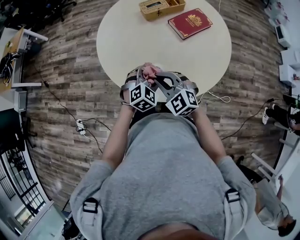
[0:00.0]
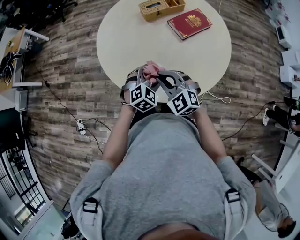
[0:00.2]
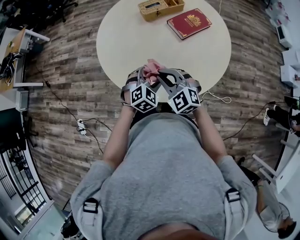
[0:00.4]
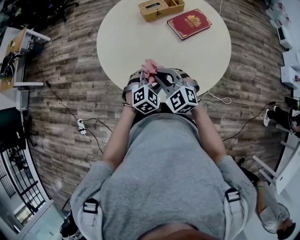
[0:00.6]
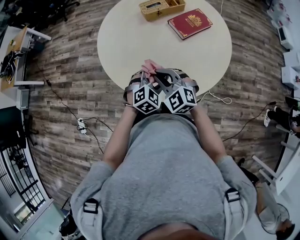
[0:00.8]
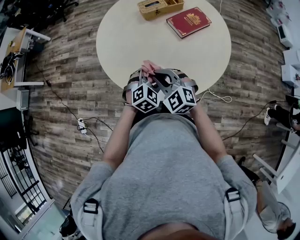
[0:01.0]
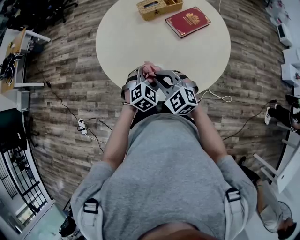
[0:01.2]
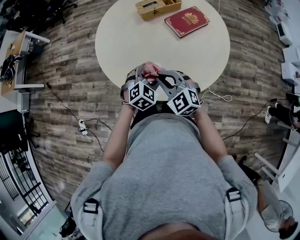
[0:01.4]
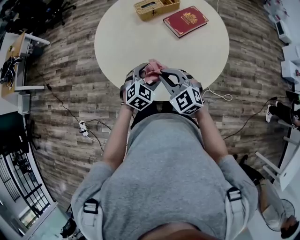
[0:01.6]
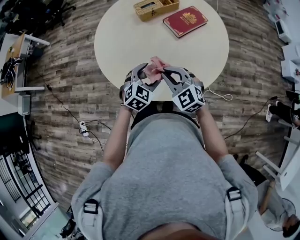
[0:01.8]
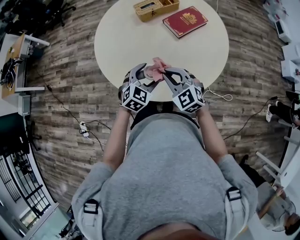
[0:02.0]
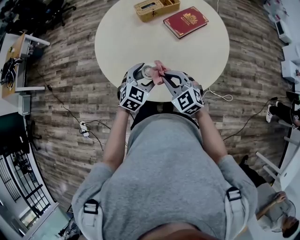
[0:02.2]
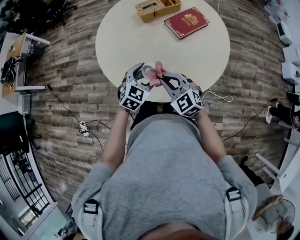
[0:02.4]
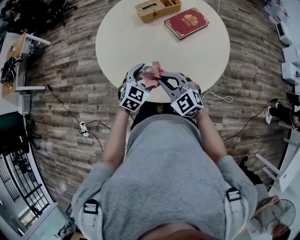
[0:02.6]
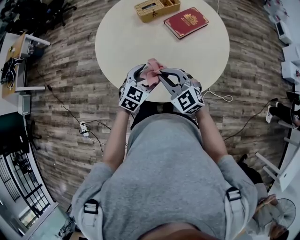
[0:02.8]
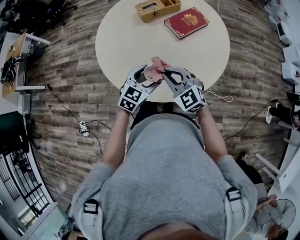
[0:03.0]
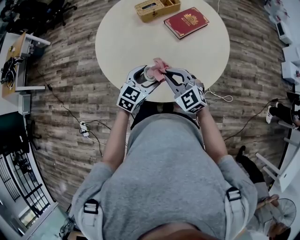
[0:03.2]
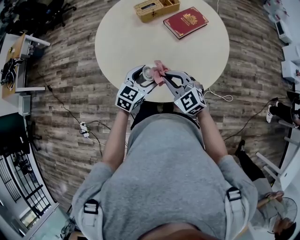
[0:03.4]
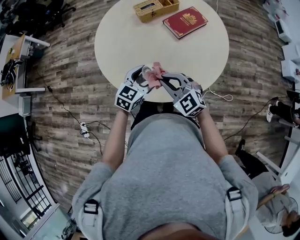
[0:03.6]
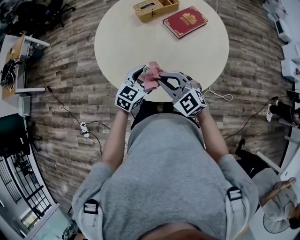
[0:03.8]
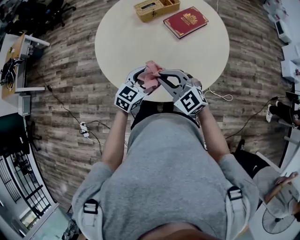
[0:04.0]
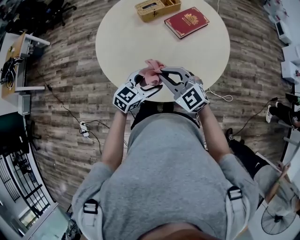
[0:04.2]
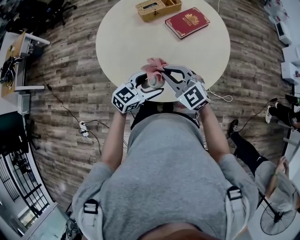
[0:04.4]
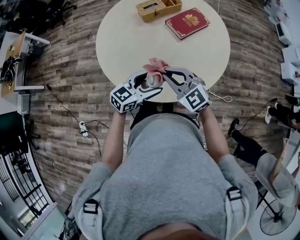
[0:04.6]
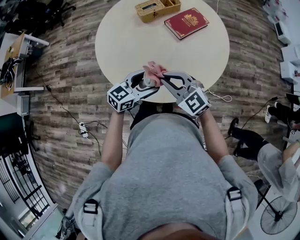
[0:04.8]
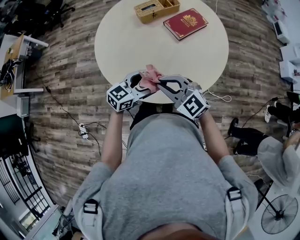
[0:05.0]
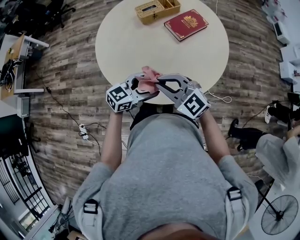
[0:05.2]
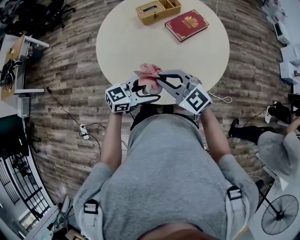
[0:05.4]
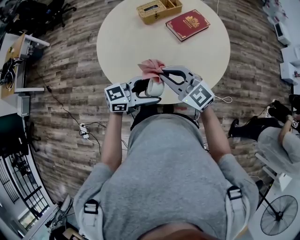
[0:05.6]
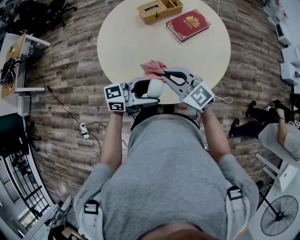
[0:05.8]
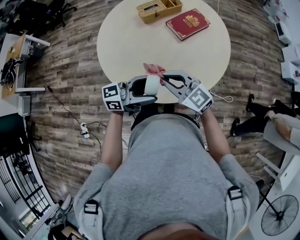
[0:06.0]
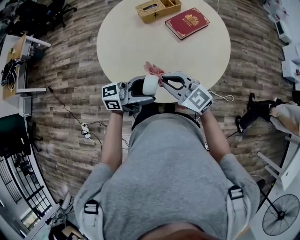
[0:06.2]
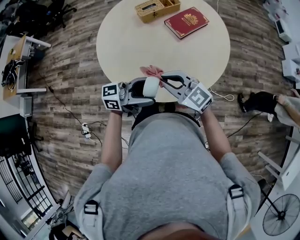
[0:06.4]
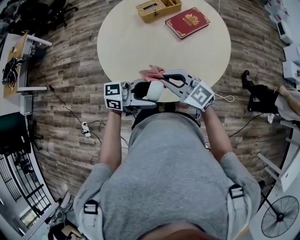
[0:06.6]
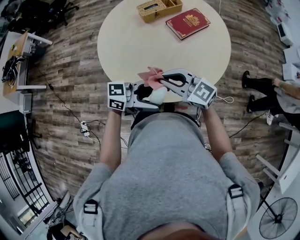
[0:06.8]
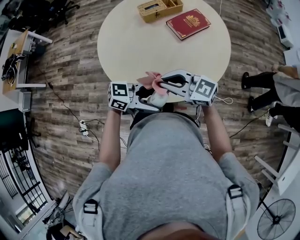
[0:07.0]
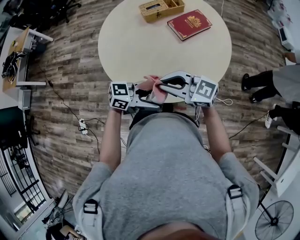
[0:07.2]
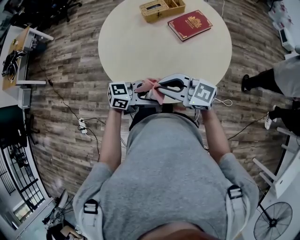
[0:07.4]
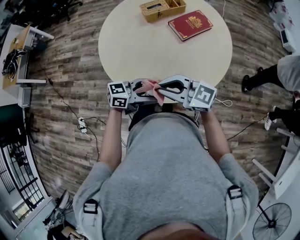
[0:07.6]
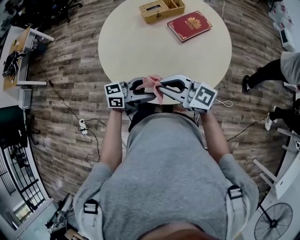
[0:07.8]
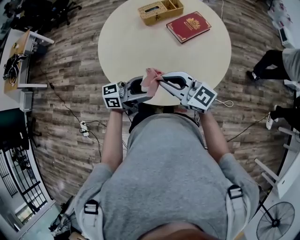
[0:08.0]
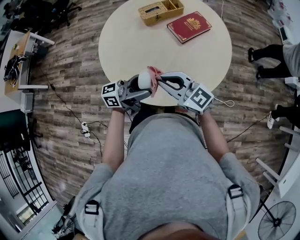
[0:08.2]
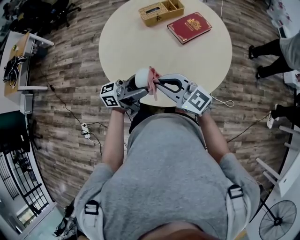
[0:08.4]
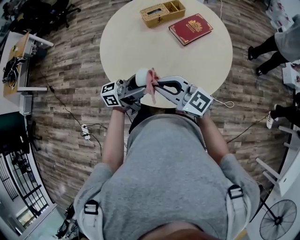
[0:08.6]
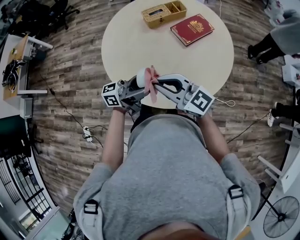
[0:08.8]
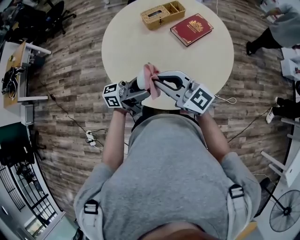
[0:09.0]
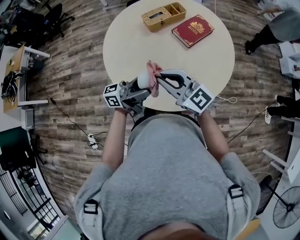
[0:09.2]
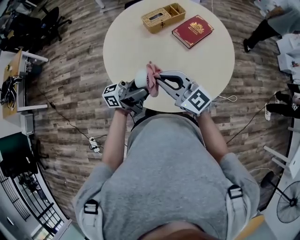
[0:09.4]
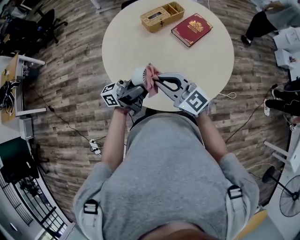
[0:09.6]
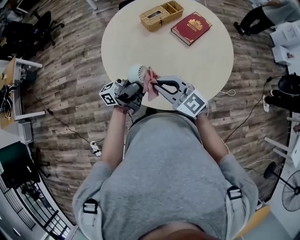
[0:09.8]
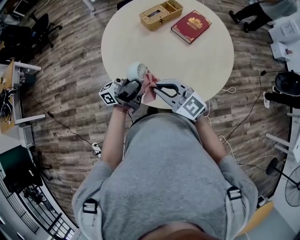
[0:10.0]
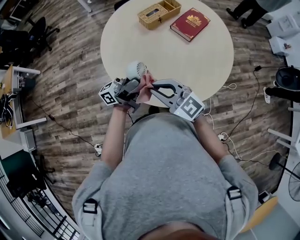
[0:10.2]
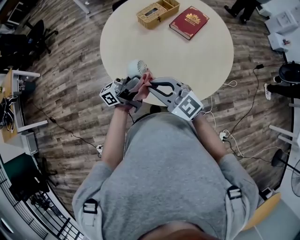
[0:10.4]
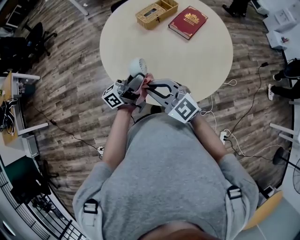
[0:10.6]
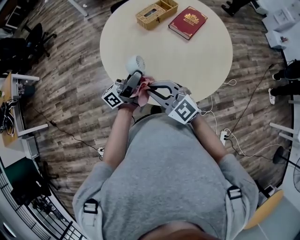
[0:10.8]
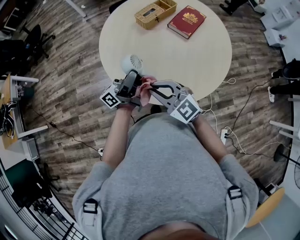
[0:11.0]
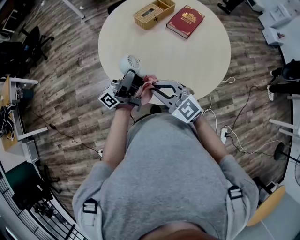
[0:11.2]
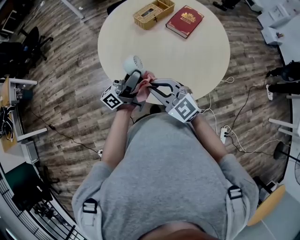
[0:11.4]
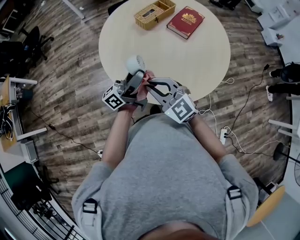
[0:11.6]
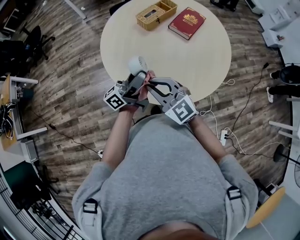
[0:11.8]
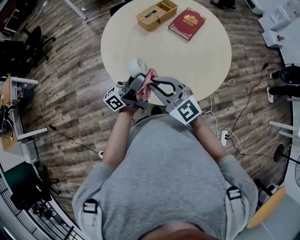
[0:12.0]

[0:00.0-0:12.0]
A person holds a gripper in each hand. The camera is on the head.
0:00.0 to 0:01.6: The right gripper is displaced to the right by roughly 5 cm.
0:01.6 to 0:03.0: The grippers move only a little.
0:03.0 to 0:04.4: The left gripper rotates roughly 20 degrees.
0:04.4 to 0:06.0: The left gripper heads upward, covering some 10 cm, and changes its angle by approximately 40 degrees.
0:06.0 to 0:07.6: The right gripper turns by about 20 degrees, while the left gripper goes roughly 5 cm downward.
0:07.6 to 0:09.0: The left gripper ends up some 15 cm from where it was, and changes its angle by approximately 30 degrees. Meanwhile the right gripper ends up about 10 cm from where it was, and turns by roughly 20 degrees.
0:09.0 to 0:10.4: The left gripper changes place by roughly 15 cm; the right gripper changes place by roughly 15 cm.
0:10.4 to 0:12.0: The grippers make only small movements.

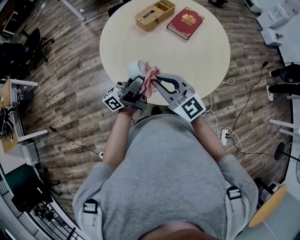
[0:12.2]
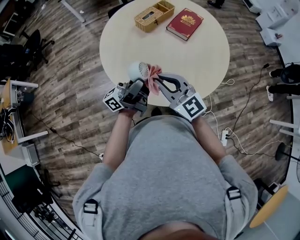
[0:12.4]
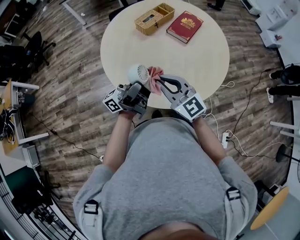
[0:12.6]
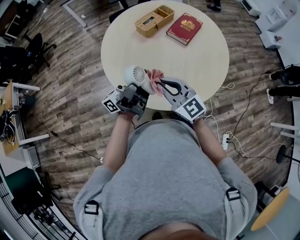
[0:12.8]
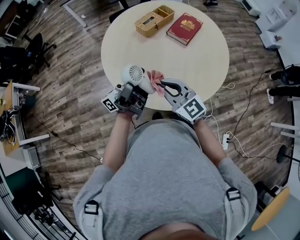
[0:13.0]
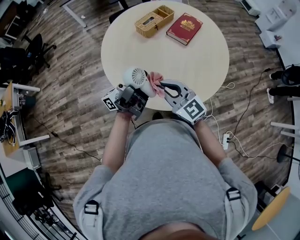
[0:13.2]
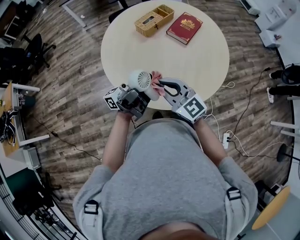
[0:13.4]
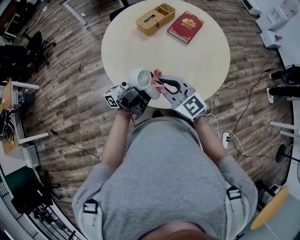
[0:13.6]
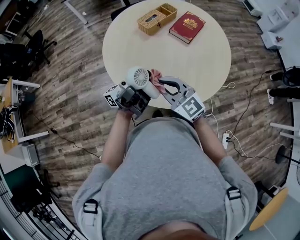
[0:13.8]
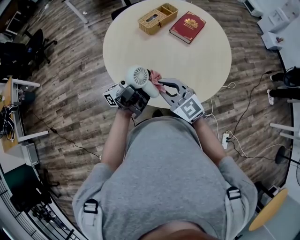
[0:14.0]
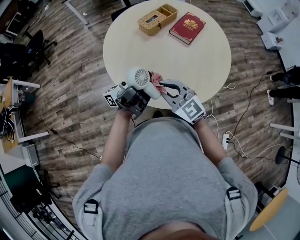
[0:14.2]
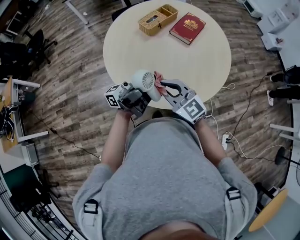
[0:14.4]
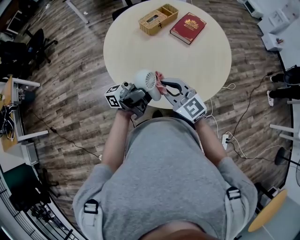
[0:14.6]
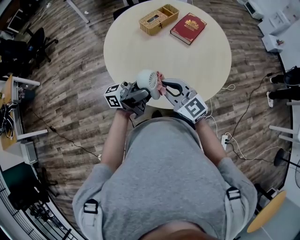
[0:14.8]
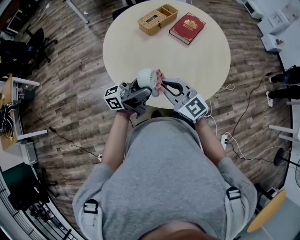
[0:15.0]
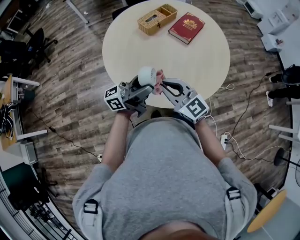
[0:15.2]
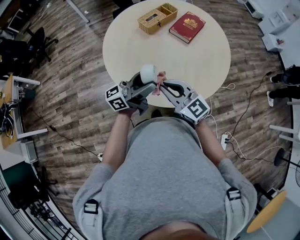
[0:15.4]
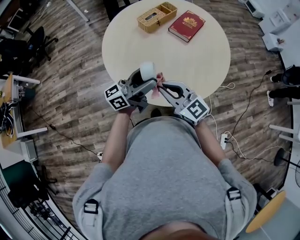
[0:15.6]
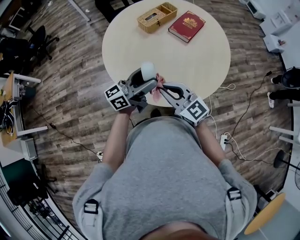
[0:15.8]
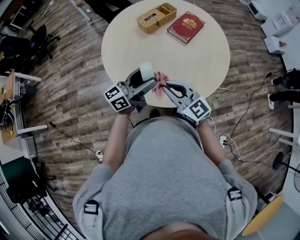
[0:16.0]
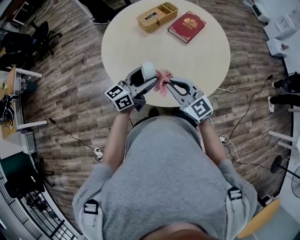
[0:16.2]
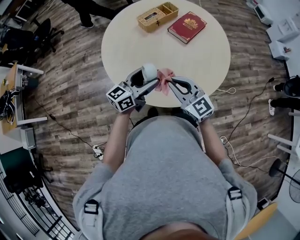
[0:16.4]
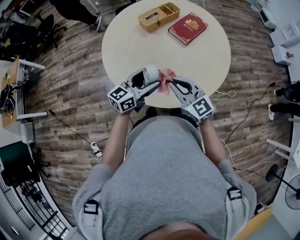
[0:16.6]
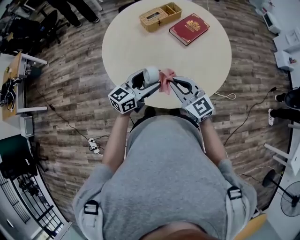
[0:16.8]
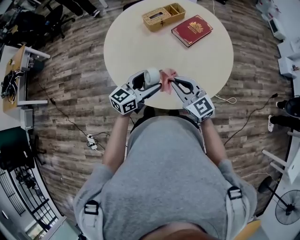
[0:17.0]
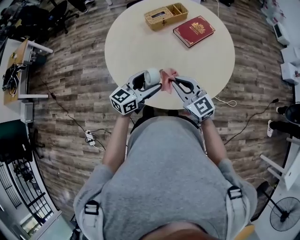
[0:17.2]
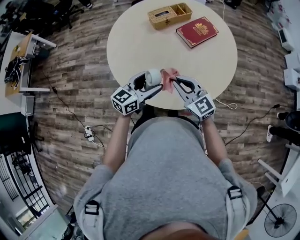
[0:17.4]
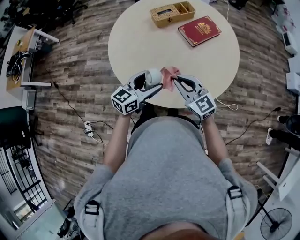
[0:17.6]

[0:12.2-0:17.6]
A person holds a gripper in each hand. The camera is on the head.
0:12.2 to 0:13.6: The left gripper swivels some 30 degrees.
0:13.6 to 0:15.0: The left gripper swivels some 20 degrees.
0:15.0 to 0:16.2: The right gripper moves to the right, roughly 10 cm, while the left gripper heads downward, covering some 5 cm, and rotates some 40 degrees.
0:16.2 to 0:17.6: Both grippers move to the right, approximately 10 cm. The left gripper rotates roughly 20 degrees.

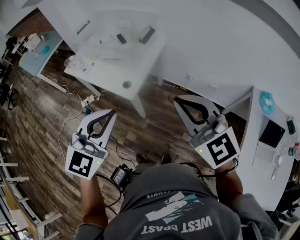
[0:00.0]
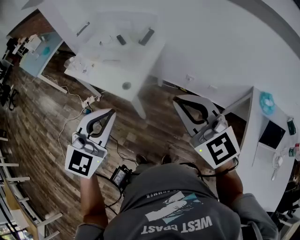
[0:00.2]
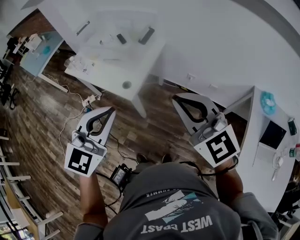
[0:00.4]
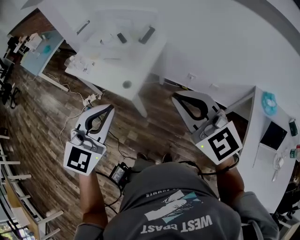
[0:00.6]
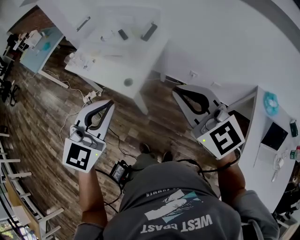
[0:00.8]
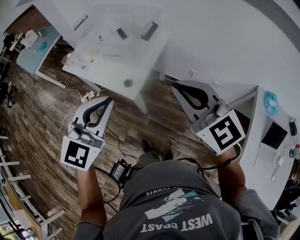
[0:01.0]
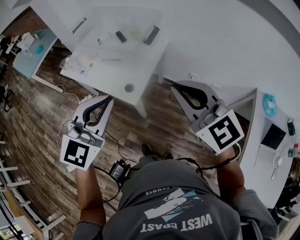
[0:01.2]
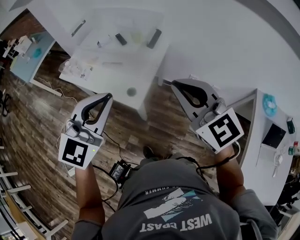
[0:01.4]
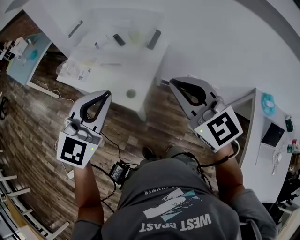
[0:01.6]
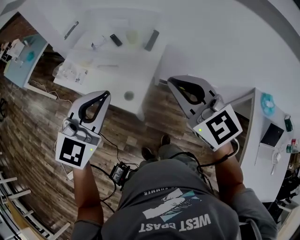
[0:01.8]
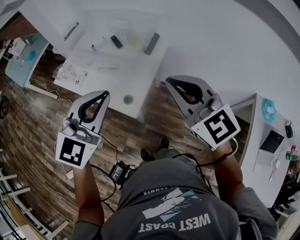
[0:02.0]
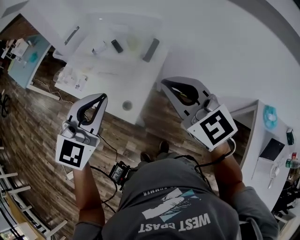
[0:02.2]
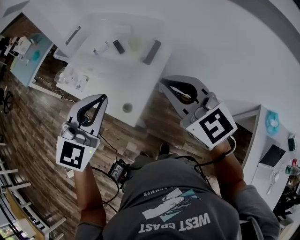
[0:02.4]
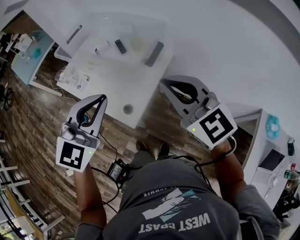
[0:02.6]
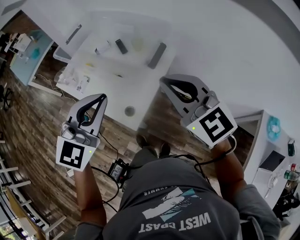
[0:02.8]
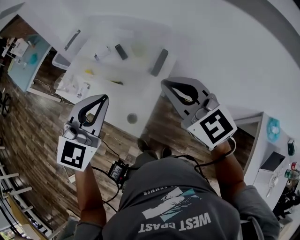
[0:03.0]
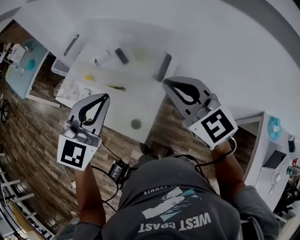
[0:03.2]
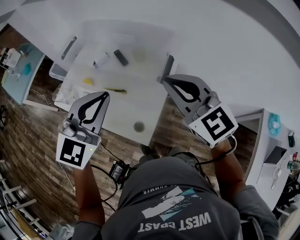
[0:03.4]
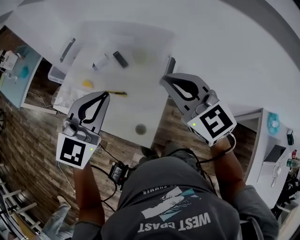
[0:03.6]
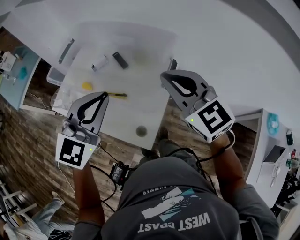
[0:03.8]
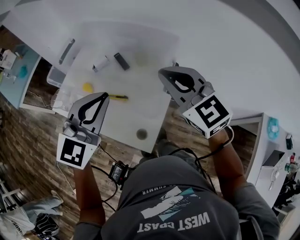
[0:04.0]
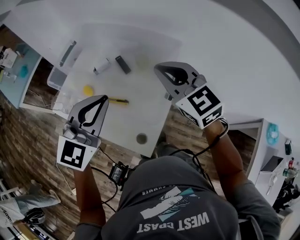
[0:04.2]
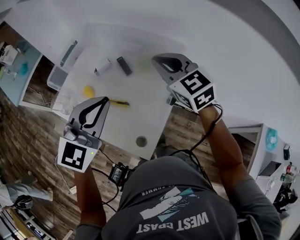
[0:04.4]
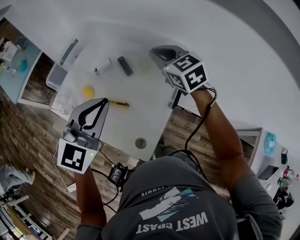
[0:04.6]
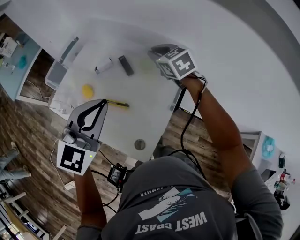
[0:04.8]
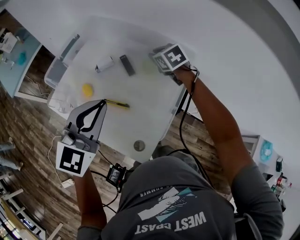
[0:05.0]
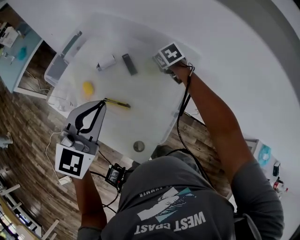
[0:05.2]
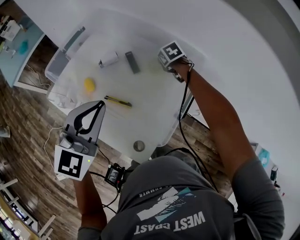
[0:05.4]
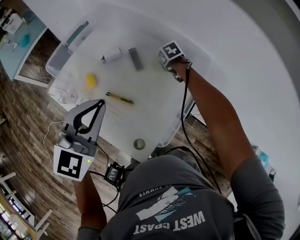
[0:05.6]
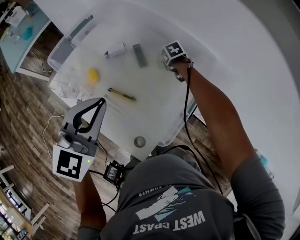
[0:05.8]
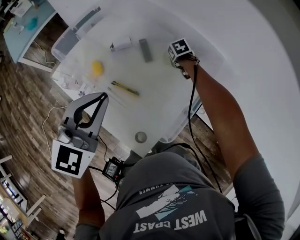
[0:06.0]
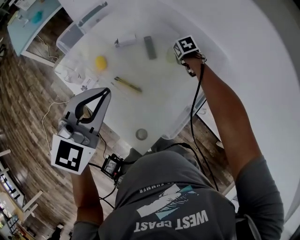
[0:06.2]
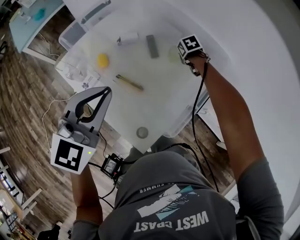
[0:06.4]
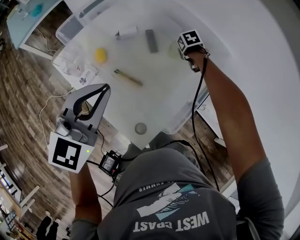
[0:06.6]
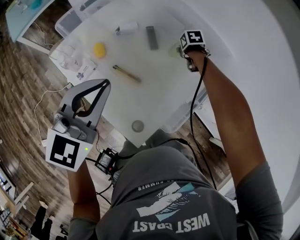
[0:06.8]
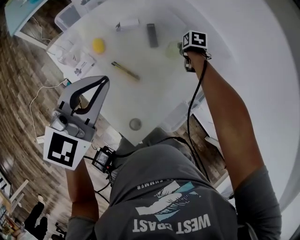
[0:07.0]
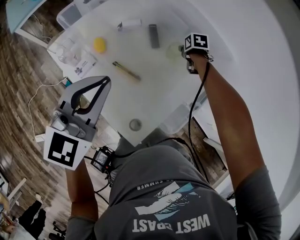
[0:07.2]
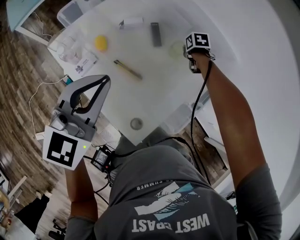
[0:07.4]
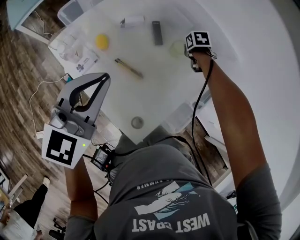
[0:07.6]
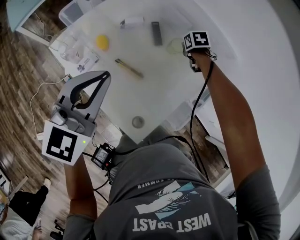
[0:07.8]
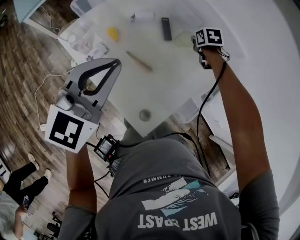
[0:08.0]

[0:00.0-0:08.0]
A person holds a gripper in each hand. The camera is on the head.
0:00.0 to 0:01.6: The grippers both shift forward and to the left by approximately 15 cm.
0:01.6 to 0:03.2: Both grippers travel together forward, roughly 20 cm.
0:03.2 to 0:04.8: The right gripper is displaced forward by some 35 cm, and swivels some 30 degrees; the left gripper is displaced forward and to the left by approximately 15 cm.
0:04.8 to 0:06.4: The right gripper travels downward by approximately 25 cm, and angles its fingers downward, by some 40 degrees. Meanwhile the left gripper shifts by approximately 5 cm.
0:06.4 to 0:08.0: The right gripper changes place by roughly 5 cm, and opens and closes again.
